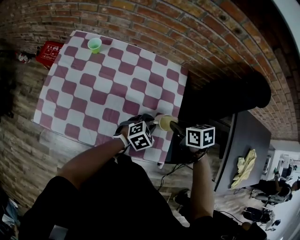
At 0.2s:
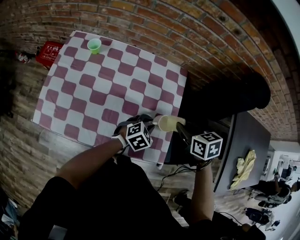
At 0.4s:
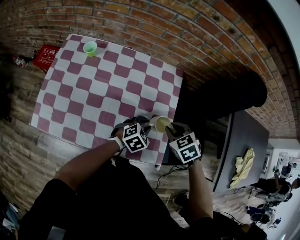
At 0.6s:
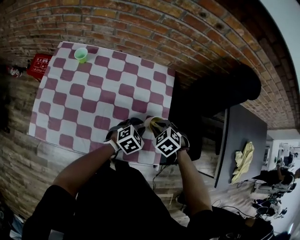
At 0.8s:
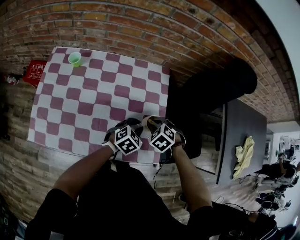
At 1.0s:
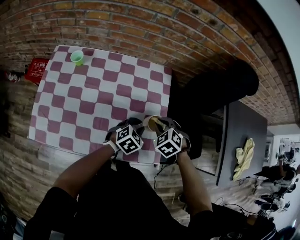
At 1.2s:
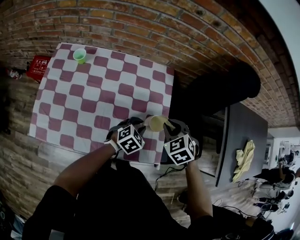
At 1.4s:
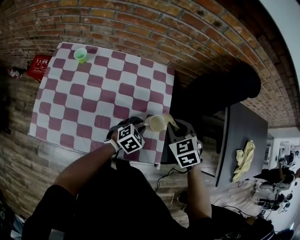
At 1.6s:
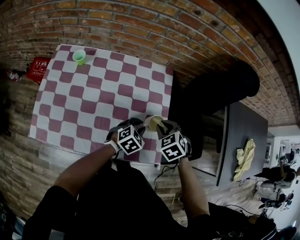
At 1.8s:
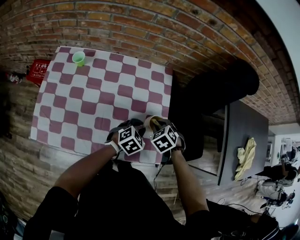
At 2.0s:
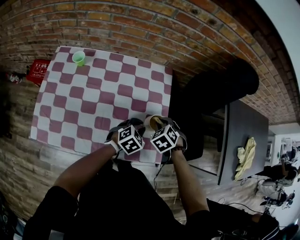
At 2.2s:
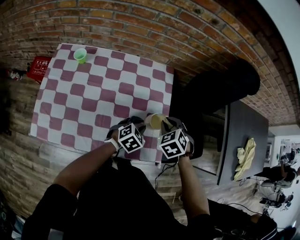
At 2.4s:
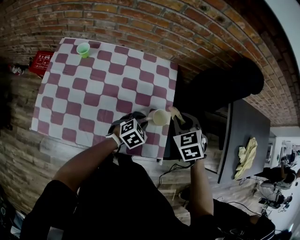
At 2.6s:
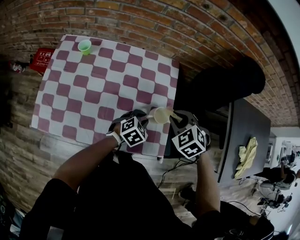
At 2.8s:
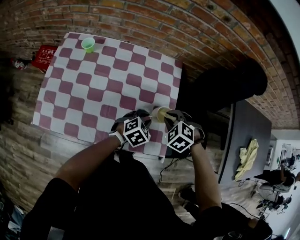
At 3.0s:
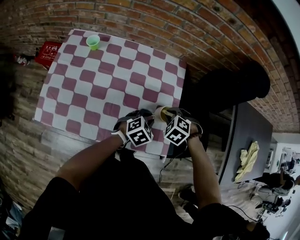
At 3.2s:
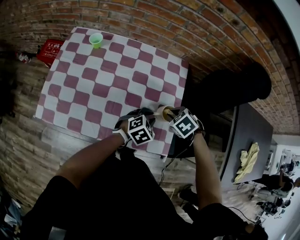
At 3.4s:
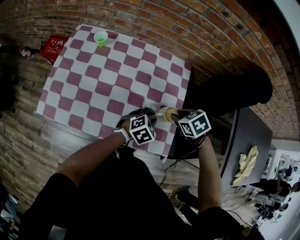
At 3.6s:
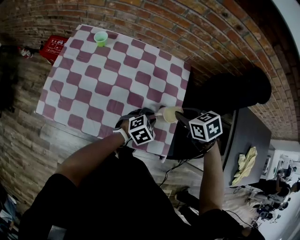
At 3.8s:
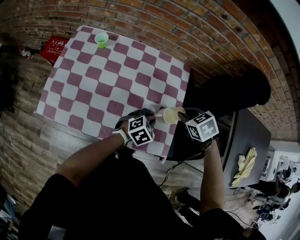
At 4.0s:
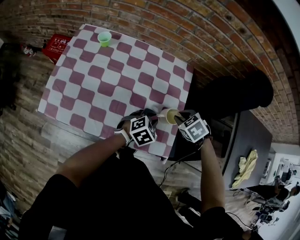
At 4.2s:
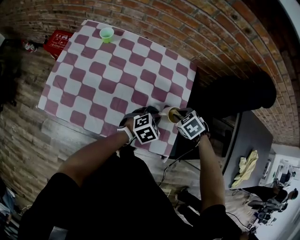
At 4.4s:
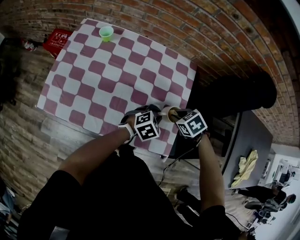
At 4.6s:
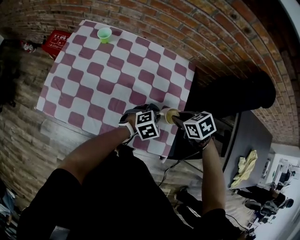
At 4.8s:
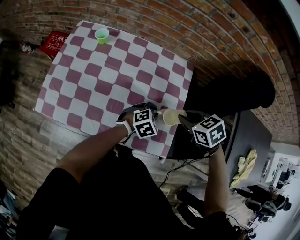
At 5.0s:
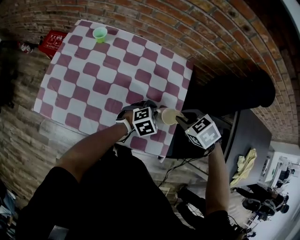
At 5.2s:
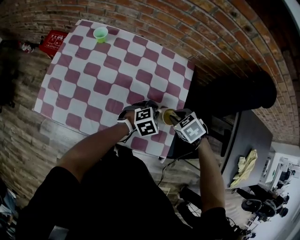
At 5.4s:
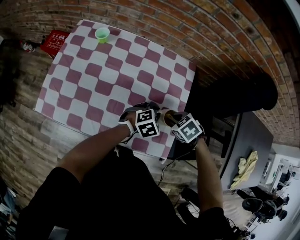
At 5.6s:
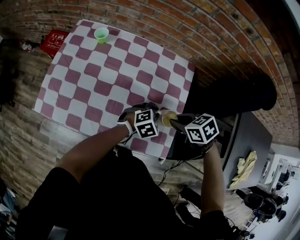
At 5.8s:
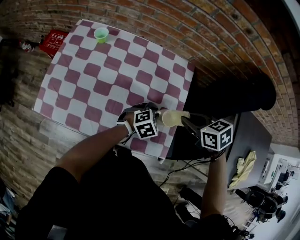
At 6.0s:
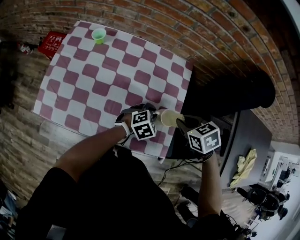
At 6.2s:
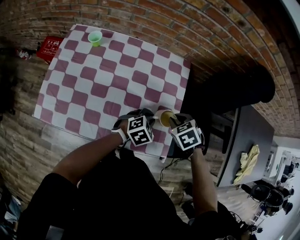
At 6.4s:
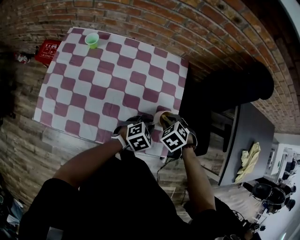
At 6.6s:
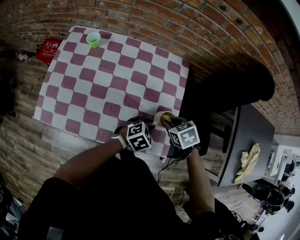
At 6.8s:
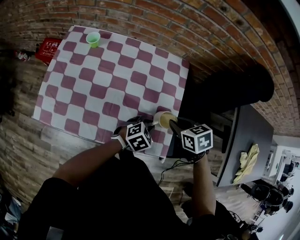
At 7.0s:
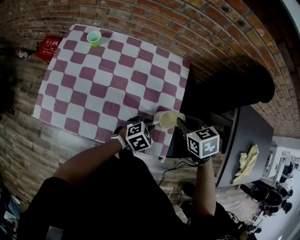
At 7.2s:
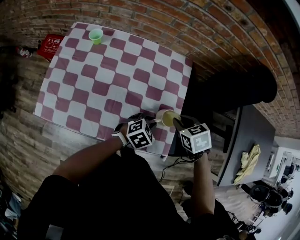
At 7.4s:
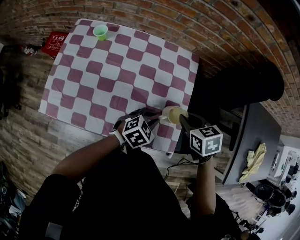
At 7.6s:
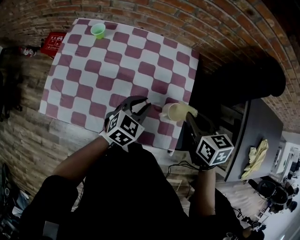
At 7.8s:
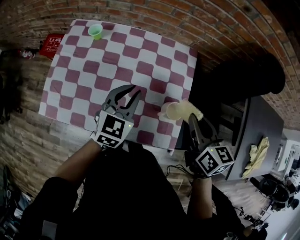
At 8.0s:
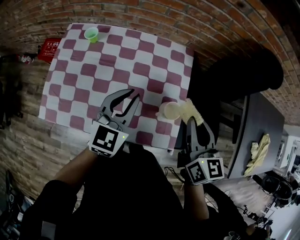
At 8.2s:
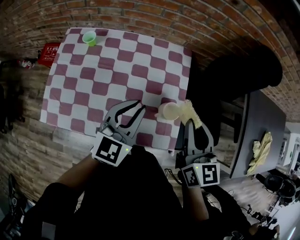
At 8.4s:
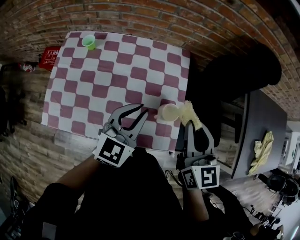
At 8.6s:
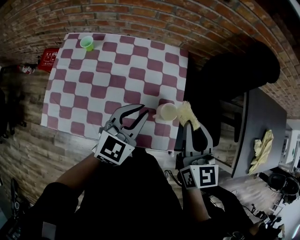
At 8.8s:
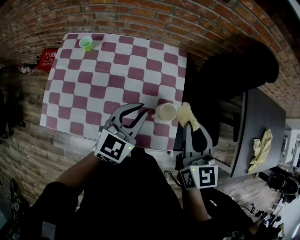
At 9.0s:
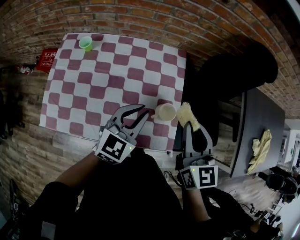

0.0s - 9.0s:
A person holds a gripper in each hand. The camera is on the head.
0.0s - 1.6s: The right gripper goes up and down, roughly 10 cm each way, reversing 3 times, and swivels about 40 degrees.
1.6s - 3.0s: The right gripper swings up and down, roughly 10 cm each way, with 2 reversals, and rotates about 30 degrees.
3.0s - 4.4s: The right gripper travels upward and back again, about 10 cm each way, and swivels some 30 degrees.
4.4s - 6.0s: The right gripper moves up and down over about 10 cm, changing direction 2 times.
6.0s - 7.6s: The right gripper swings up and down, about 15 cm each way, with 3 reversals, and swivels approximately 30 degrees, while the left gripper travels upward and to the left by some 10 cm, and swivels roughly 20 degrees.
7.6s - 9.0s: The grippers both shift upward by roughly 10 cm. The right gripper rotates roughly 30 degrees.

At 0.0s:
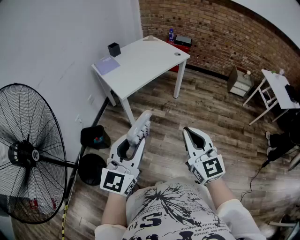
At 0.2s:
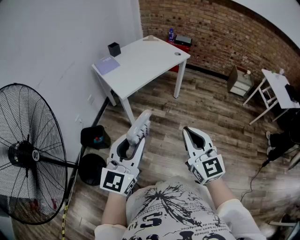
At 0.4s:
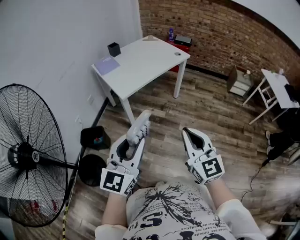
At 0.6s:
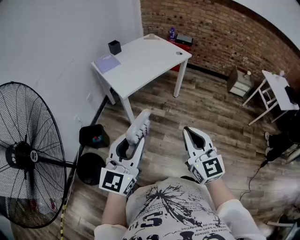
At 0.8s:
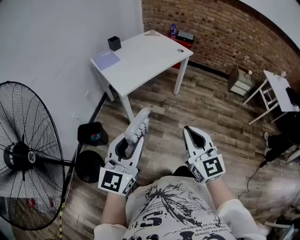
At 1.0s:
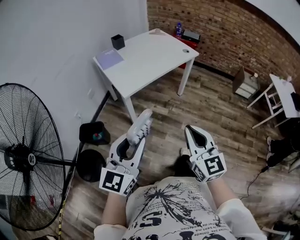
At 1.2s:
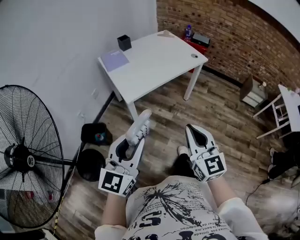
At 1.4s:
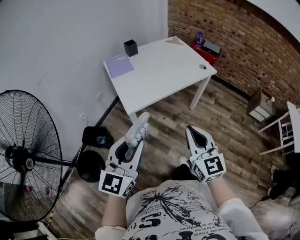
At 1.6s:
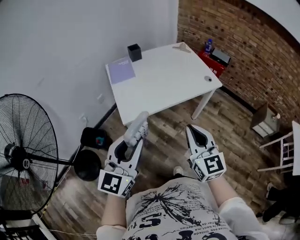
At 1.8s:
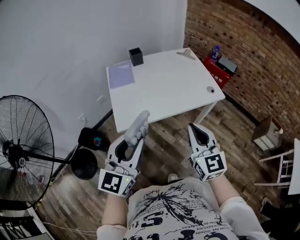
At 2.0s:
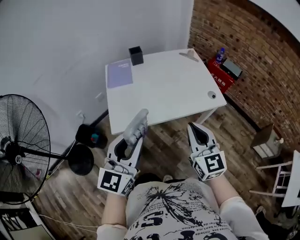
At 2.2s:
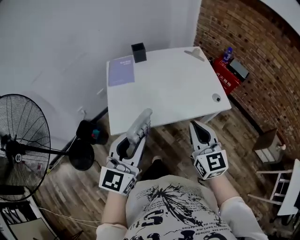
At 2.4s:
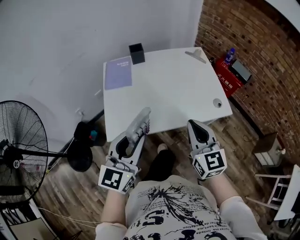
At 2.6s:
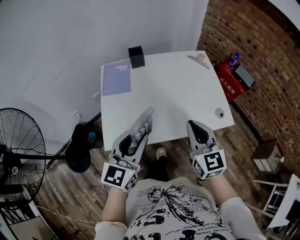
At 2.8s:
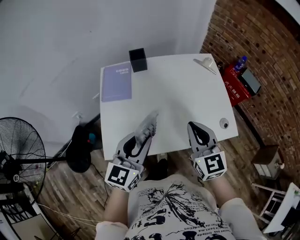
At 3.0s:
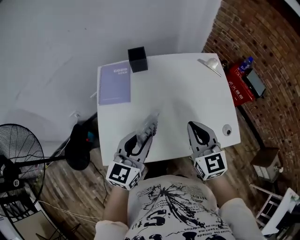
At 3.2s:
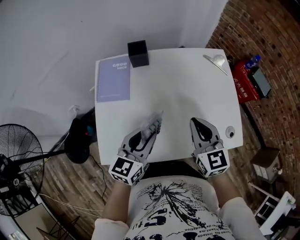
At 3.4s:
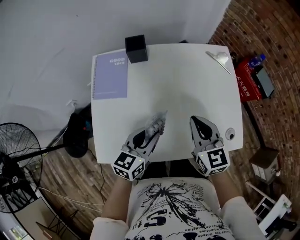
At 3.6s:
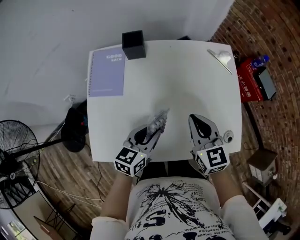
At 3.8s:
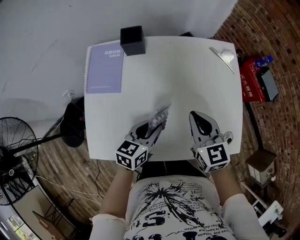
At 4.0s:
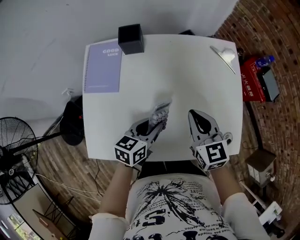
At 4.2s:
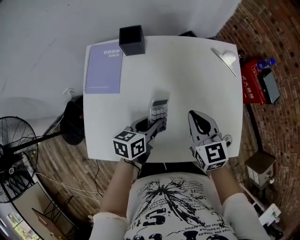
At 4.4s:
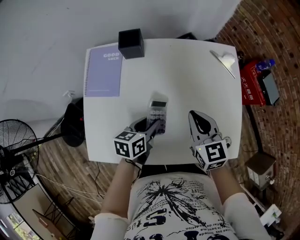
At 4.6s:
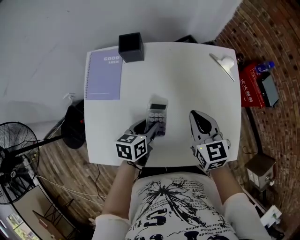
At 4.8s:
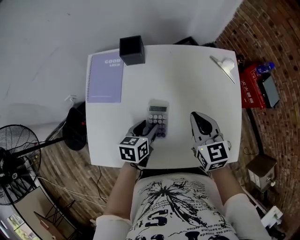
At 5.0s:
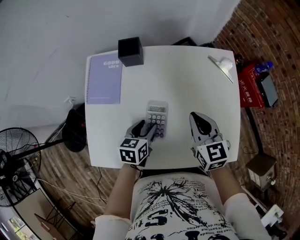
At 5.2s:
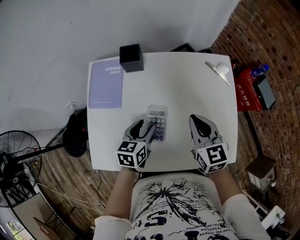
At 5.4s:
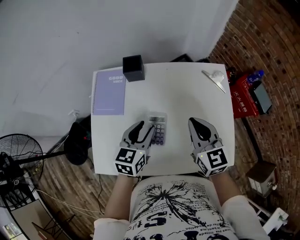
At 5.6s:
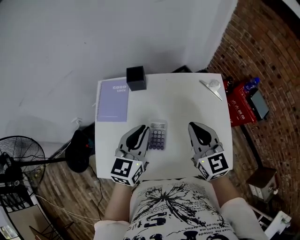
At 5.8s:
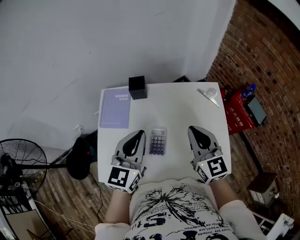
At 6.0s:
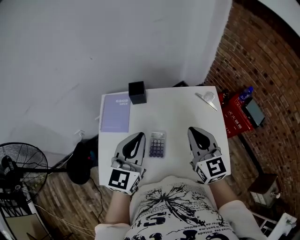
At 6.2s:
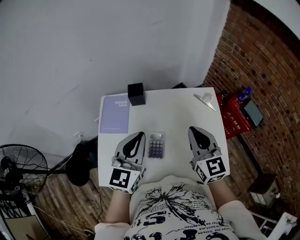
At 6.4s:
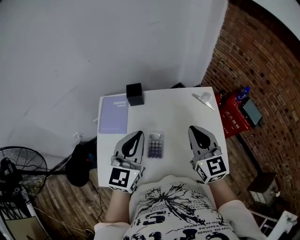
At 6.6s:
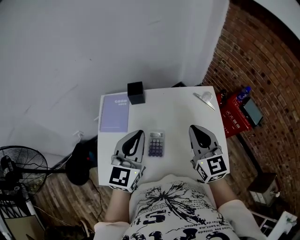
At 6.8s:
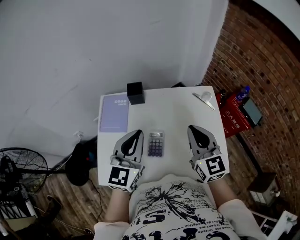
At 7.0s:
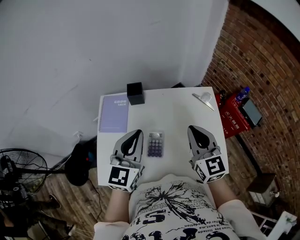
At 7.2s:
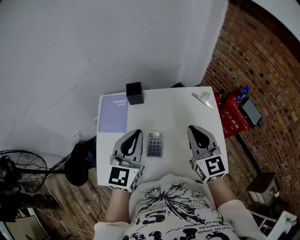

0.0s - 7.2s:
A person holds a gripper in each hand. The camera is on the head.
0.0s - 1.4s: The grippers both shift forward by some 25 cm.
1.4s - 2.8s: The two grippers travel together, forward, roughly 50 cm. The left gripper swivels some 20 degrees. Meanwhile the right gripper changes its angle by approximately 20 degrees.
2.8s - 4.4s: The right gripper shifts about 25 cm forward and downward, while the left gripper shifts approximately 30 cm downward and forward, and rotates roughly 40 degrees.
4.4s - 5.8s: The left gripper travels upward by about 25 cm, rotates roughly 50 degrees, and closes up. Meanwhile the right gripper shifts about 15 cm upward.
5.8s - 7.2s: The grippers make only small movements.

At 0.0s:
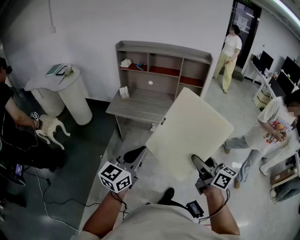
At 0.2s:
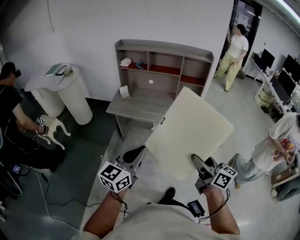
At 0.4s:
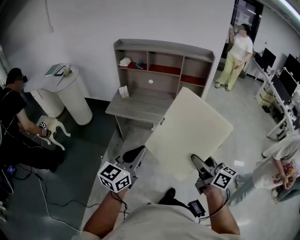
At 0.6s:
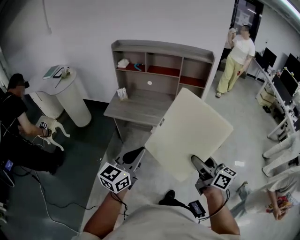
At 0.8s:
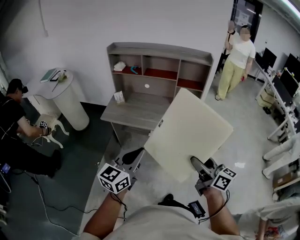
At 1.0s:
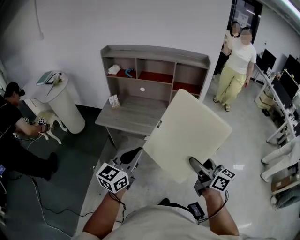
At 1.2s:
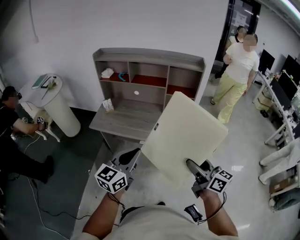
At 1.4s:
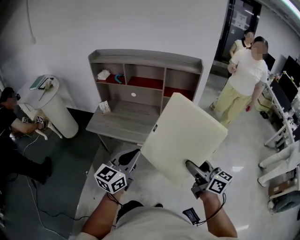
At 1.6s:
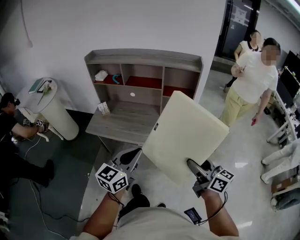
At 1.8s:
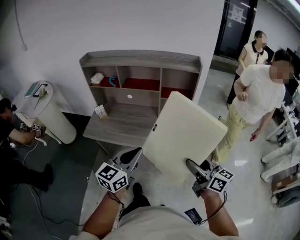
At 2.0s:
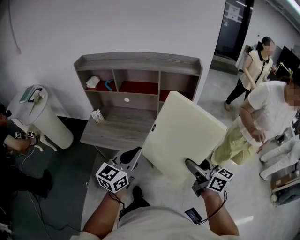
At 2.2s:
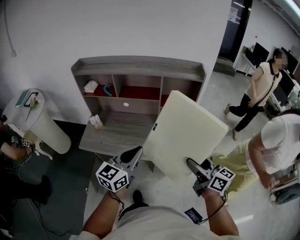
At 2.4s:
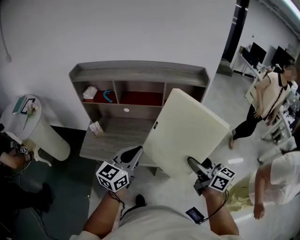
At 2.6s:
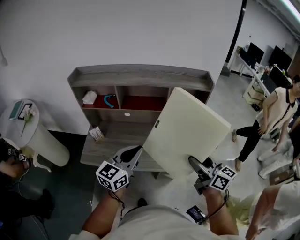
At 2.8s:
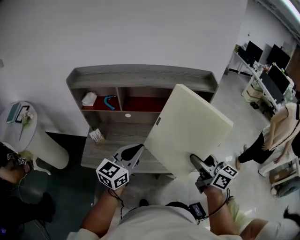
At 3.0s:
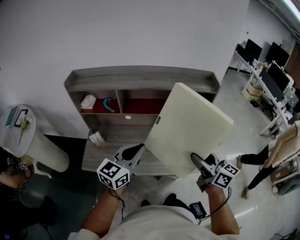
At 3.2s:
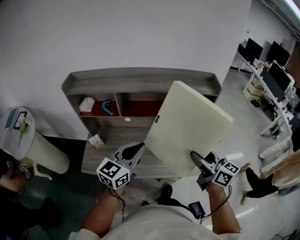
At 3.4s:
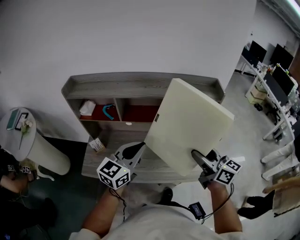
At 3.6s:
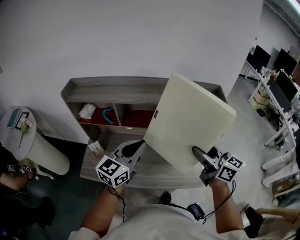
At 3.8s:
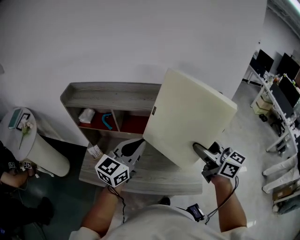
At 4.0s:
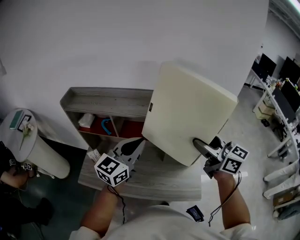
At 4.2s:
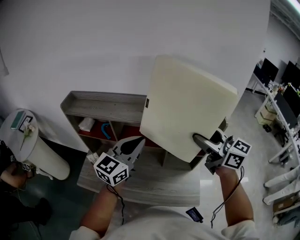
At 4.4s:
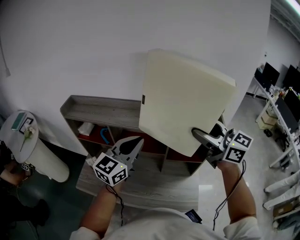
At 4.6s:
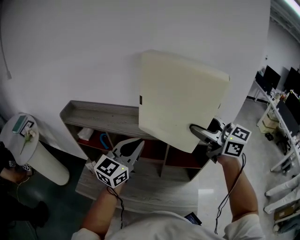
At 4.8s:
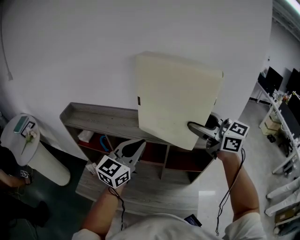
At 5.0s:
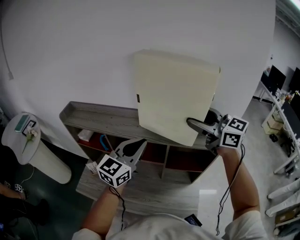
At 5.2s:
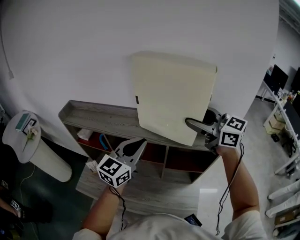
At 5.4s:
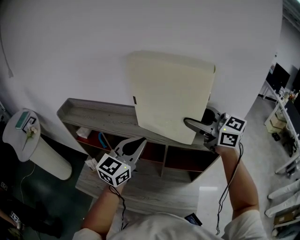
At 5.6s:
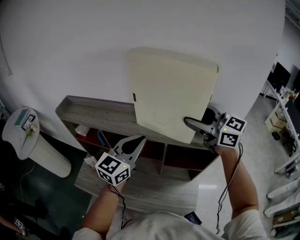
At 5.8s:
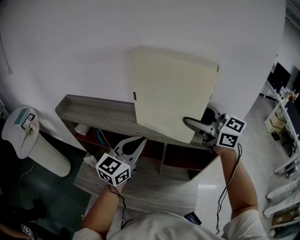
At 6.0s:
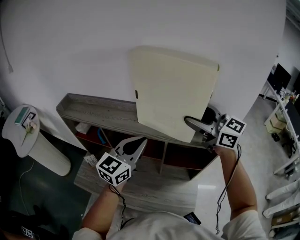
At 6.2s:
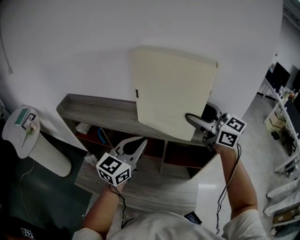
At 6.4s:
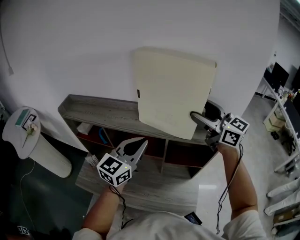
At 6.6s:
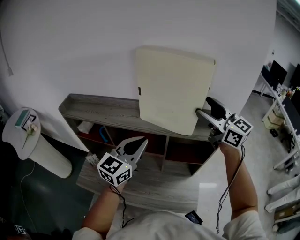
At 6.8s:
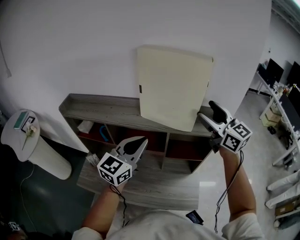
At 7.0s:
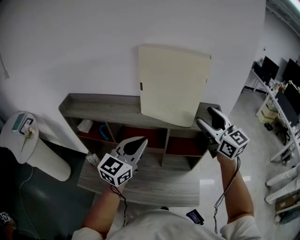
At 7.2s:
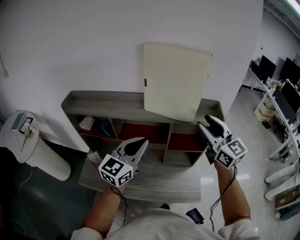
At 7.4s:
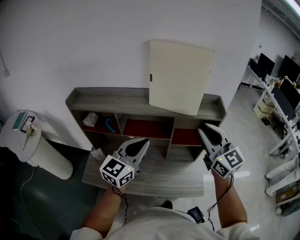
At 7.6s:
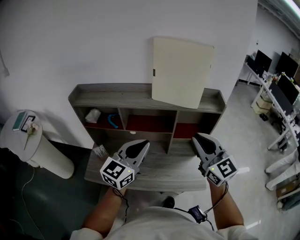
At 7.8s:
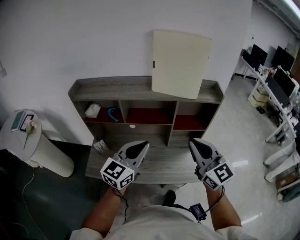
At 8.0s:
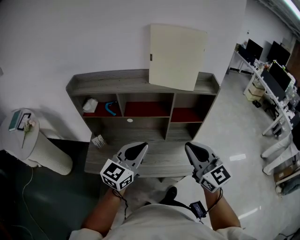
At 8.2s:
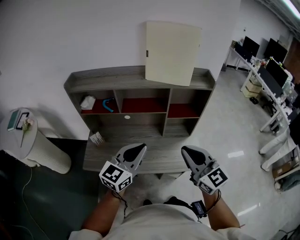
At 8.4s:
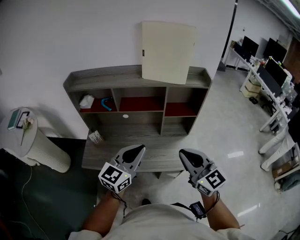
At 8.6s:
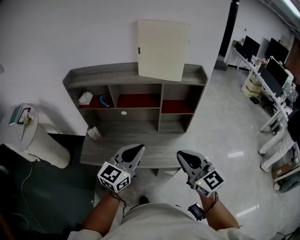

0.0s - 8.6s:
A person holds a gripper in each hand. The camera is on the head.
0.0s - 1.4s: The two grippers go some 25 cm forward and to the right.
1.4s - 2.8s: The left gripper is displaced forward by about 30 cm. The right gripper is displaced forward and to the left by roughly 25 cm.
2.8s - 4.4s: Both grippers travel together forward and upward, some 30 cm. The right gripper changes its angle by approximately 30 degrees.
4.4s - 5.8s: The right gripper shifts approximately 10 cm forward, while the left gripper goes about 5 cm to the right.
5.8s - 7.2s: The two grippers go roughly 10 cm backward. The right gripper turns by about 30 degrees.
7.2s - 8.6s: Both grippers travel together backward, roughly 25 cm. The right gripper closes its fingers.
